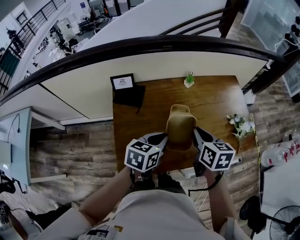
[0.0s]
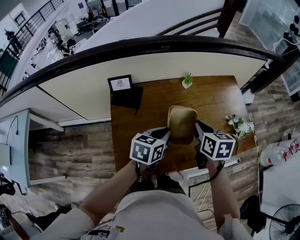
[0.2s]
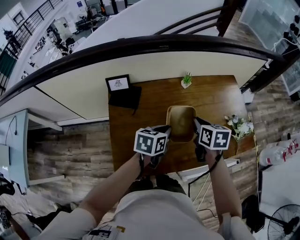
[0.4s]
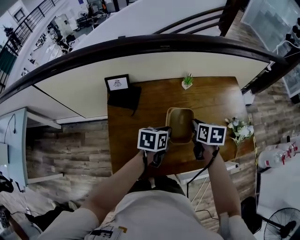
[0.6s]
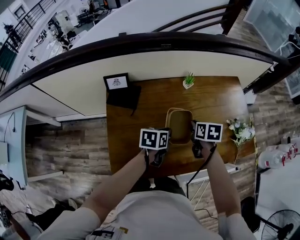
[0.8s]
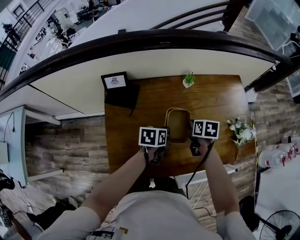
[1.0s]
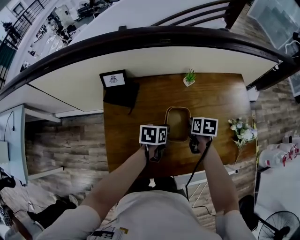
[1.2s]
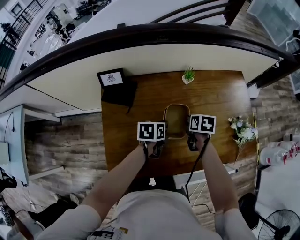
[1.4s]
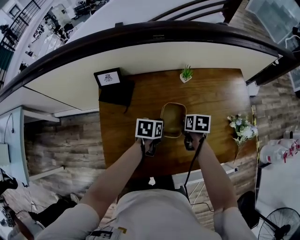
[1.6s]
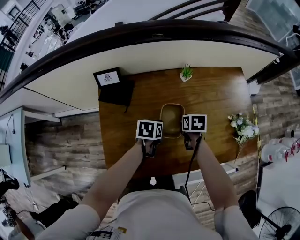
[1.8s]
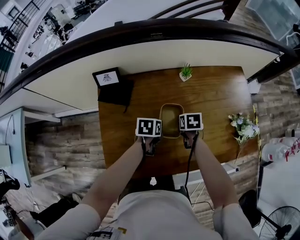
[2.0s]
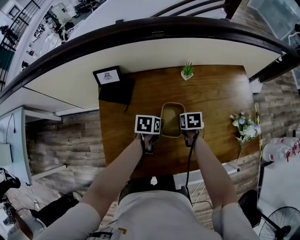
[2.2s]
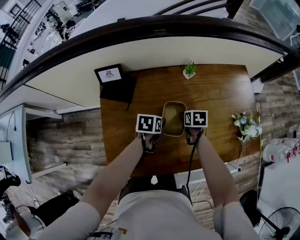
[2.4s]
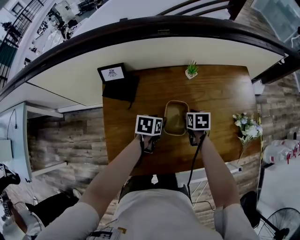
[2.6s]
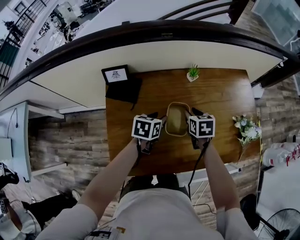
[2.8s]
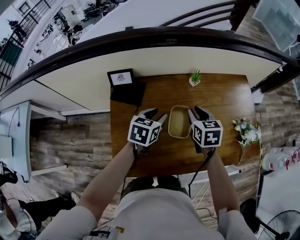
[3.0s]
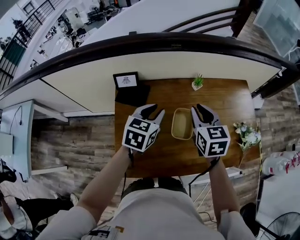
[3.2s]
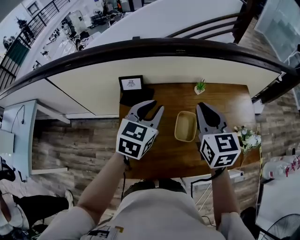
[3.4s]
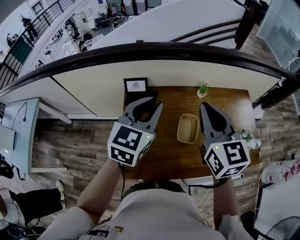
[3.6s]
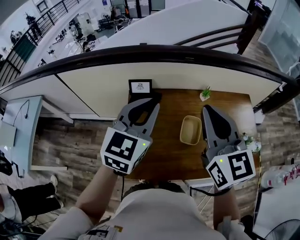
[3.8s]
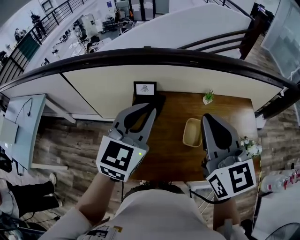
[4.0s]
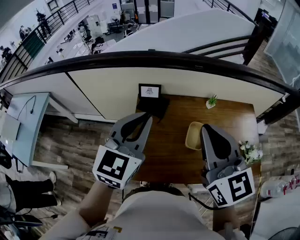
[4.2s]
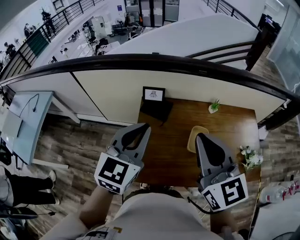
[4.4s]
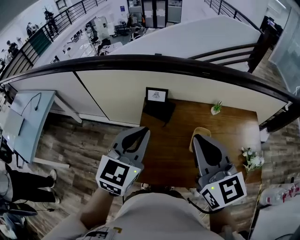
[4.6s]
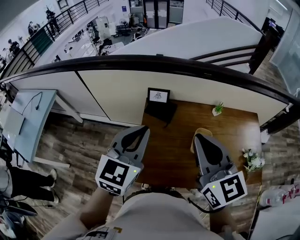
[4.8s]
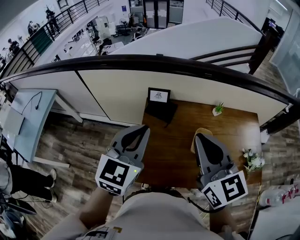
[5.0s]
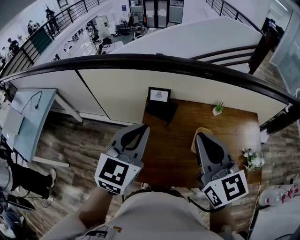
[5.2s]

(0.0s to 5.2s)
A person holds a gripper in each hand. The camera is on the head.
0.0s - 1.8s: The two grippers go roughly 25 cm downward and forward. The left gripper changes its angle by some 30 degrees. The right gripper rotates roughly 30 degrees.
1.8s - 3.4s: The two grippers go approximately 30 cm upward. The left gripper tilts its fingers approximately 30 degrees upward, while the right gripper tilts its fingers some 40 degrees upward.
3.4s - 5.2s: The grippers both shift to the left, backward and upward by some 25 cm. The right gripper turns by about 20 degrees.

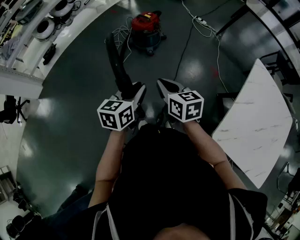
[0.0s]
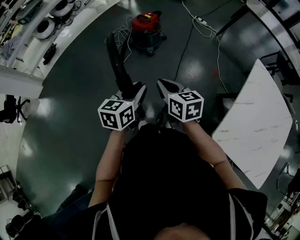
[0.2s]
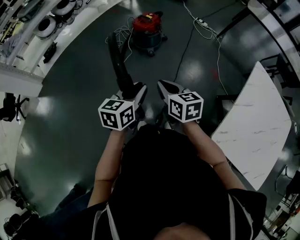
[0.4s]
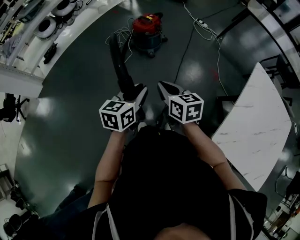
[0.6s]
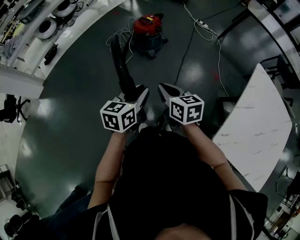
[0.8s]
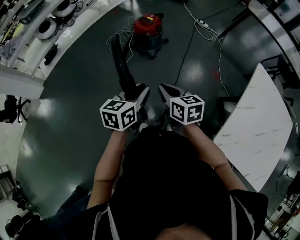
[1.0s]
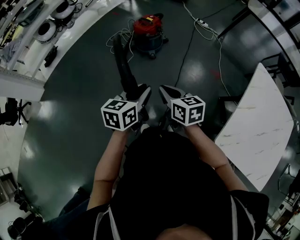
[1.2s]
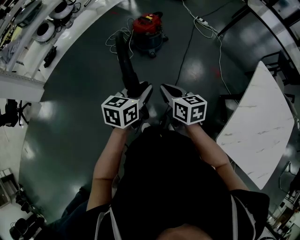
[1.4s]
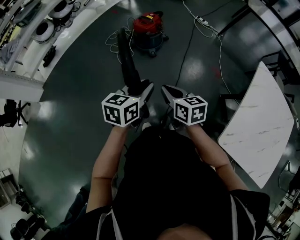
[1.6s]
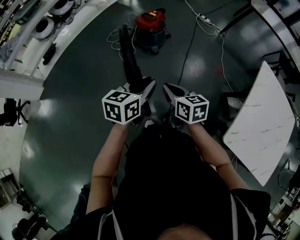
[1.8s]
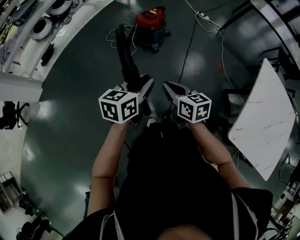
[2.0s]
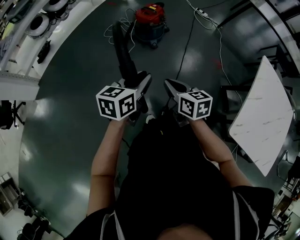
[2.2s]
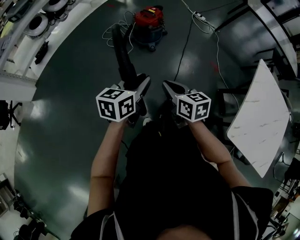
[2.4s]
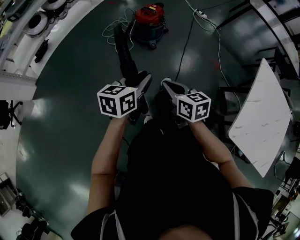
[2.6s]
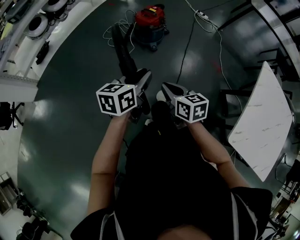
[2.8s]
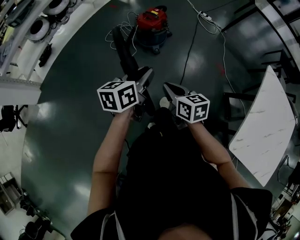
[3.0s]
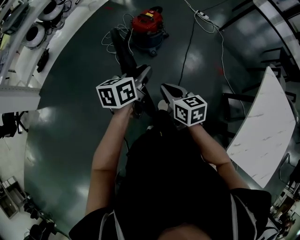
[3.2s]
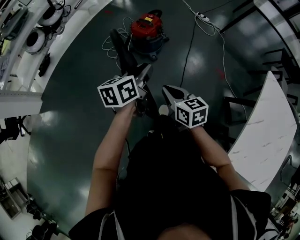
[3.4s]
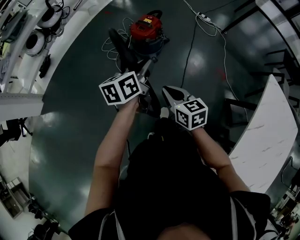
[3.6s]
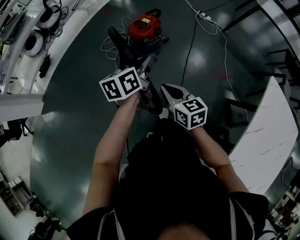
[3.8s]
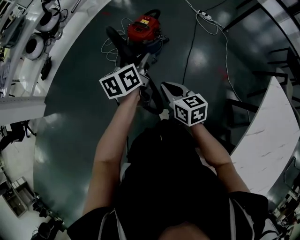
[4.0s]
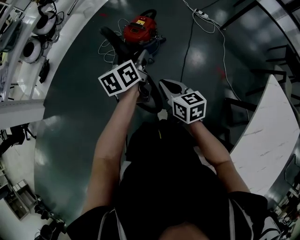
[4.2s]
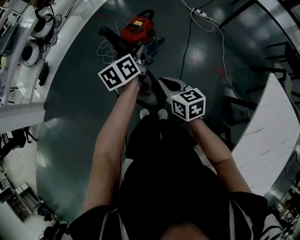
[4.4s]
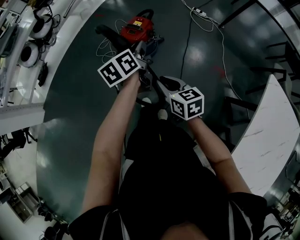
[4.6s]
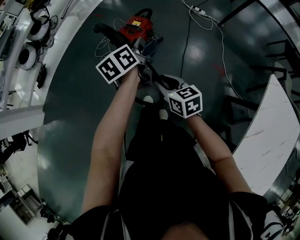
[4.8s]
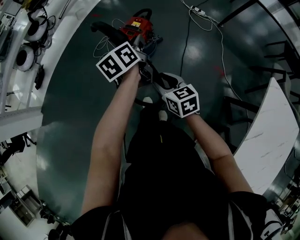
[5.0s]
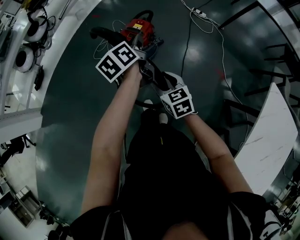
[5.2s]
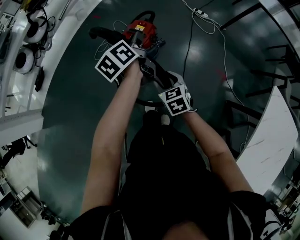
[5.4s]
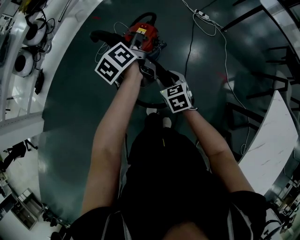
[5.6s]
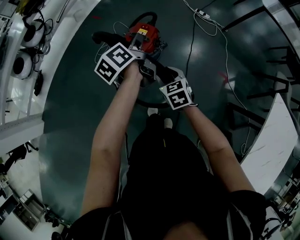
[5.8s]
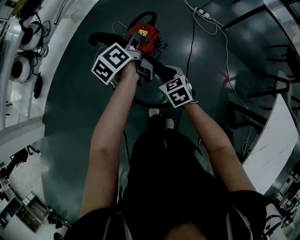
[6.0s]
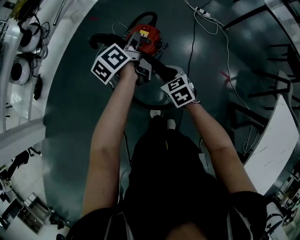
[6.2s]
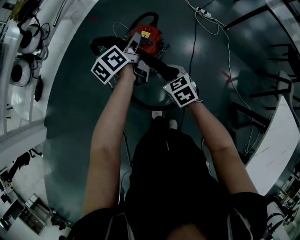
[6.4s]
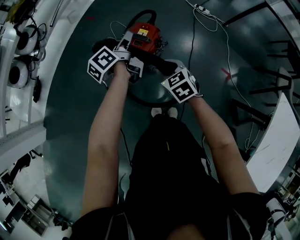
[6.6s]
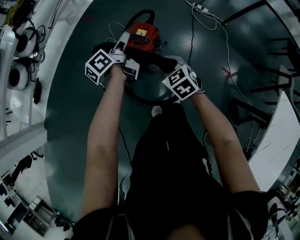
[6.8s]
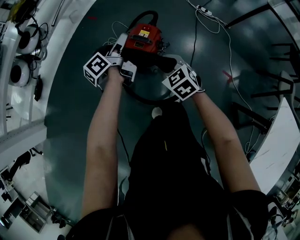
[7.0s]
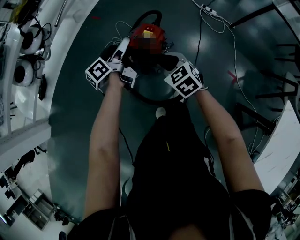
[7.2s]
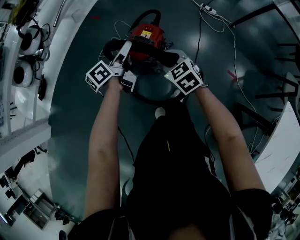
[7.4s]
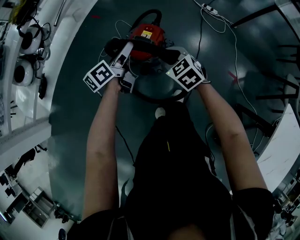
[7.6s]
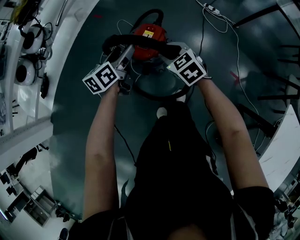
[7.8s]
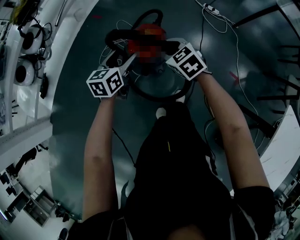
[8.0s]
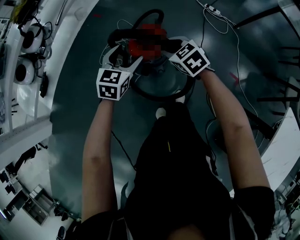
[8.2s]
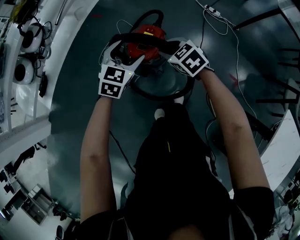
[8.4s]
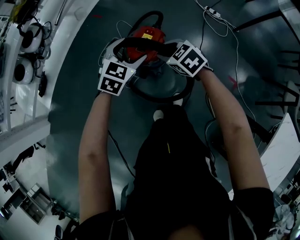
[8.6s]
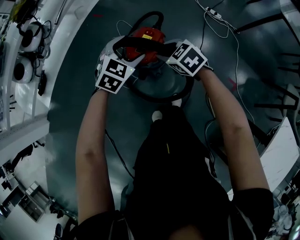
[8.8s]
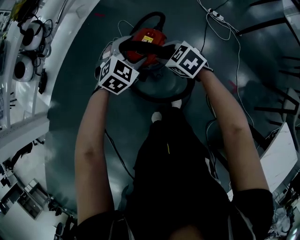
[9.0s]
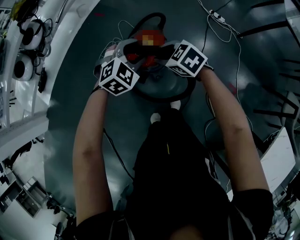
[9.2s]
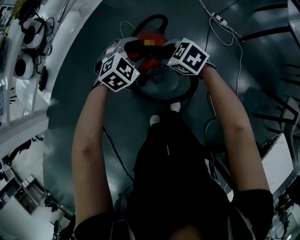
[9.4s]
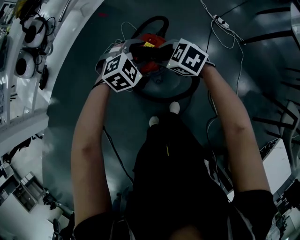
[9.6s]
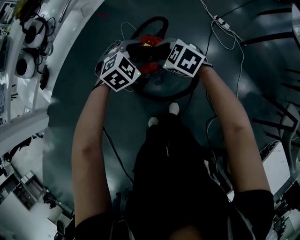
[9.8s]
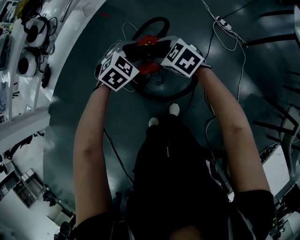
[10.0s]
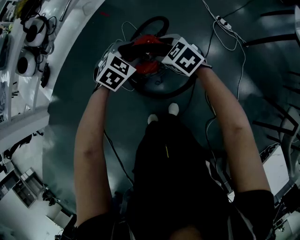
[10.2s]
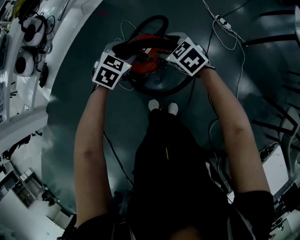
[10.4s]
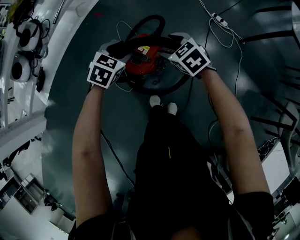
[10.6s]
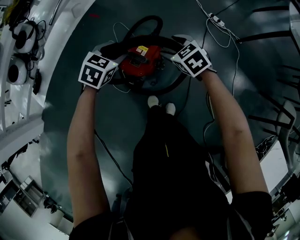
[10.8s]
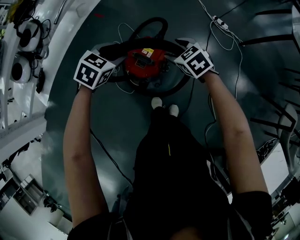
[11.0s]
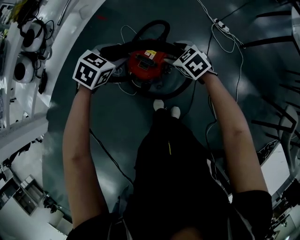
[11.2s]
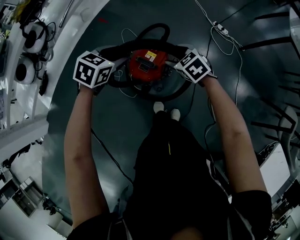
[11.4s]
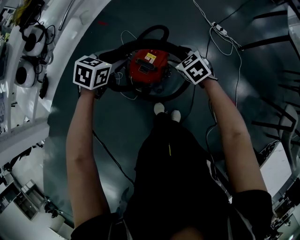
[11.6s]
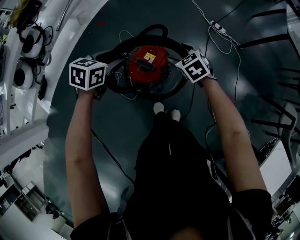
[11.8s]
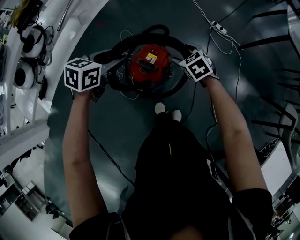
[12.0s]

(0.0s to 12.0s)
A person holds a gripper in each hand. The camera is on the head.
0.0s - 1.6s: The grippers move only a little.
1.6s - 3.0s: The right gripper is displaced to the left and forward by about 10 cm, while the left gripper heads forward and to the left, covering roughly 15 cm.
3.0s - 4.4s: Both grippers move forward and to the right, roughly 25 cm.
4.4s - 6.0s: The two grippers go about 25 cm forward. The right gripper turns by about 30 degrees, and opens its fingers.
6.0s - 7.6s: The right gripper moves forward, roughly 10 cm. The left gripper travels downward by about 5 cm, and opens up.
7.6s - 9.0s: The left gripper moves to the right, some 10 cm, and rolls clockwise, seen from behind, by some 80 degrees. The right gripper heads forward, covering about 5 cm.
9.0s - 10.4s: The left gripper heads forward, covering about 10 cm, and closes; the right gripper goes some 10 cm forward and to the right, and opens its fingers.
10.4s - 12.0s: The right gripper changes place by approximately 5 cm, and turns by about 20 degrees. The left gripper moves to the left and upward, some 10 cm, and changes its angle by about 30 degrees.

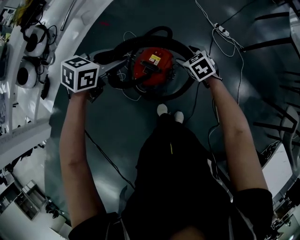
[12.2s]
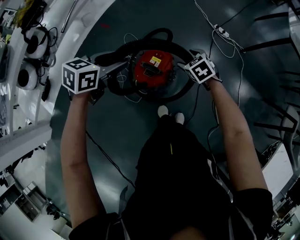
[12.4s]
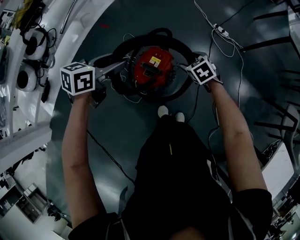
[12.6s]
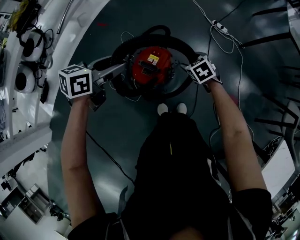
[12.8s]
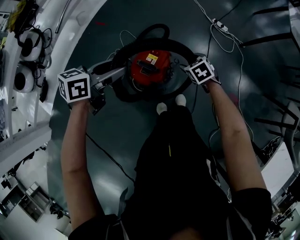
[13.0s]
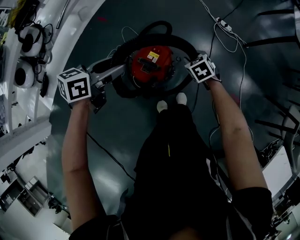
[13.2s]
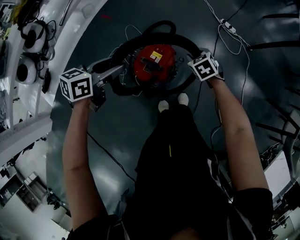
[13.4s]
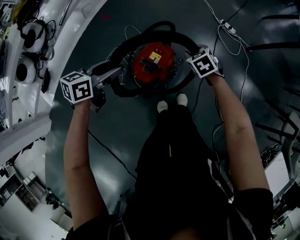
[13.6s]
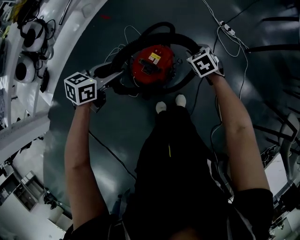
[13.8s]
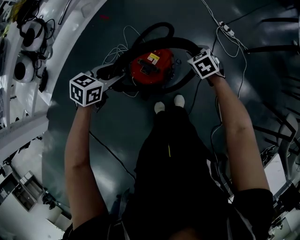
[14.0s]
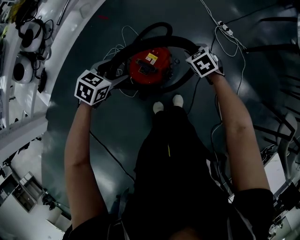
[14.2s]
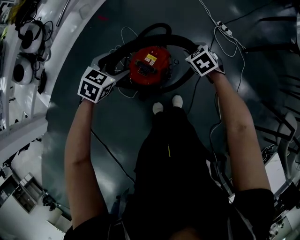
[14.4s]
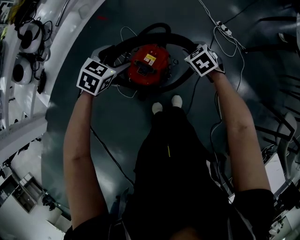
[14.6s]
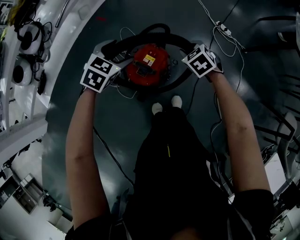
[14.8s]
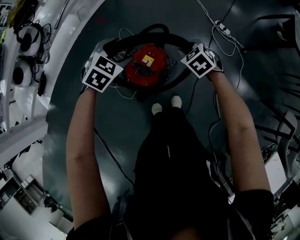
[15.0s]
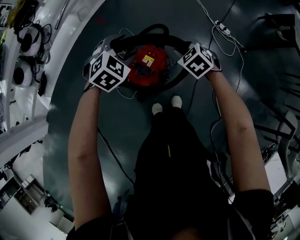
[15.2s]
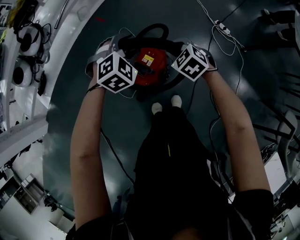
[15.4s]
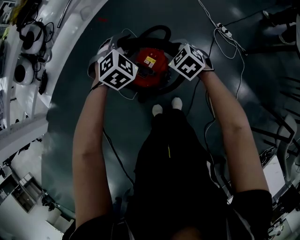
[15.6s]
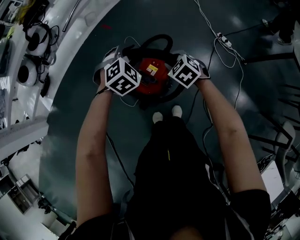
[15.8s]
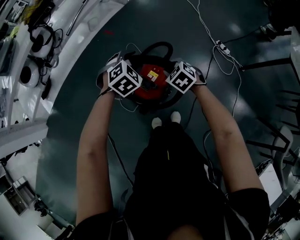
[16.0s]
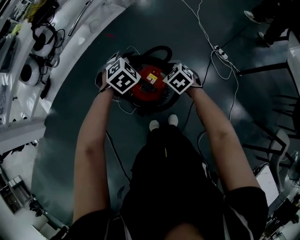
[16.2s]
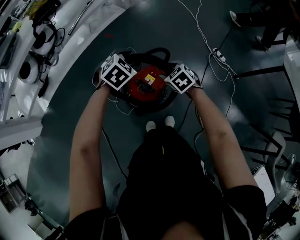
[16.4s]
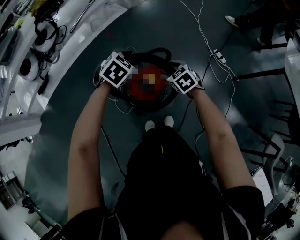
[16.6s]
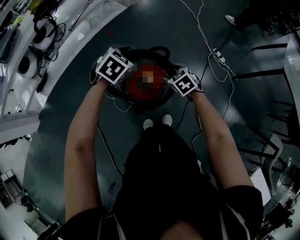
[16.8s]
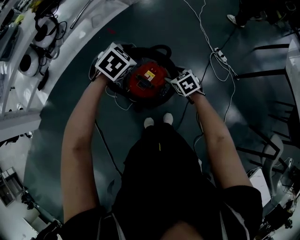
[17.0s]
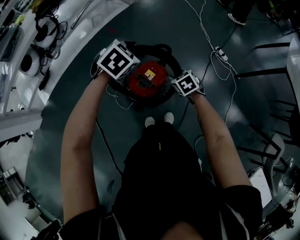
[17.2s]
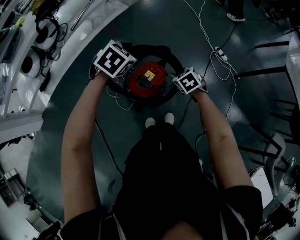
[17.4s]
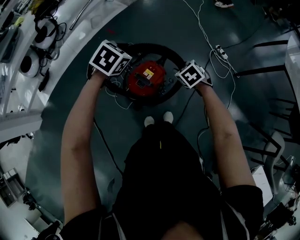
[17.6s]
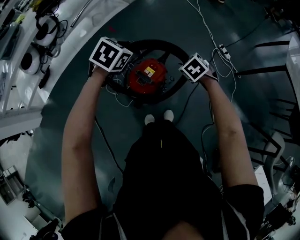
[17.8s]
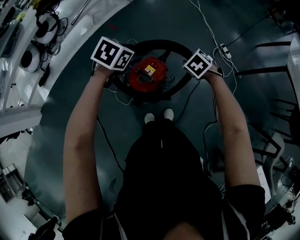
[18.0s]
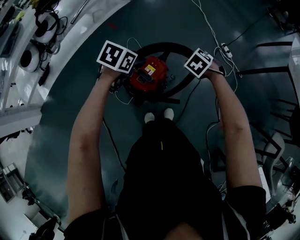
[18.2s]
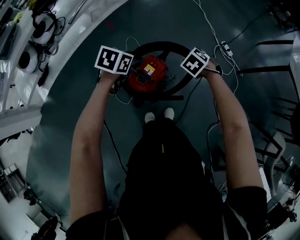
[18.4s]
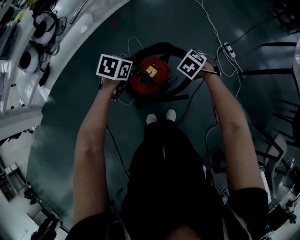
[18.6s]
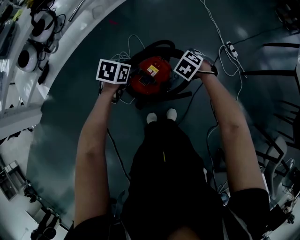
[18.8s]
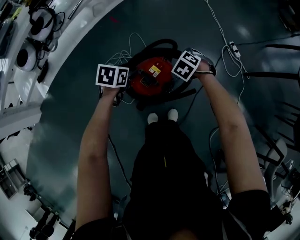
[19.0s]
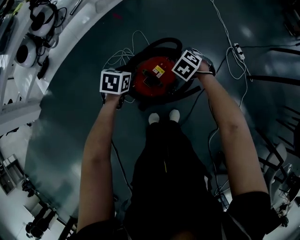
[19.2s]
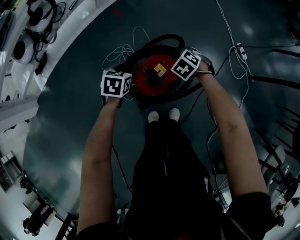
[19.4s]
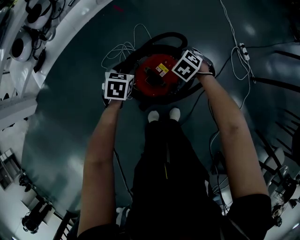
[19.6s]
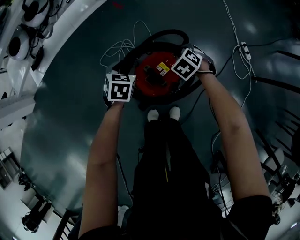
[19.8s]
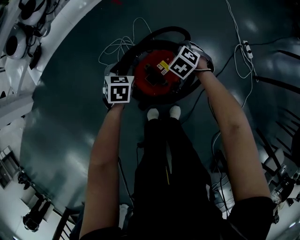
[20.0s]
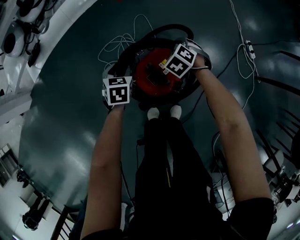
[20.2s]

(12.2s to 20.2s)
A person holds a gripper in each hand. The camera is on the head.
12.2s - 13.8s: The left gripper is displaced downward by approximately 5 cm. The right gripper moves forward, roughly 5 cm, and closes its fingers.
13.8s - 15.4s: The right gripper changes place by roughly 10 cm, and turns by some 20 degrees. The left gripper changes place by approximately 15 cm, twists about 60 degrees clockwise, seen from behind, and opens and closes again.
15.4s - 17.0s: The right gripper opens its fingers; the left gripper goes roughly 5 cm upward, and swivels about 30 degrees.
17.0s - 18.6s: The left gripper travels downward by some 10 cm, and swivels approximately 30 degrees. Meanwhile the right gripper heads forward, covering about 5 cm, rotates approximately 30 degrees, and closes.
18.6s - 20.2s: The left gripper shifts approximately 20 cm downward, and swivels roughly 30 degrees. The right gripper shifts by about 25 cm.
